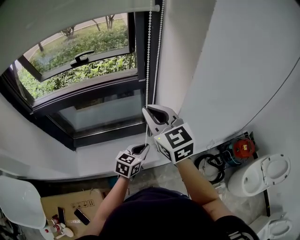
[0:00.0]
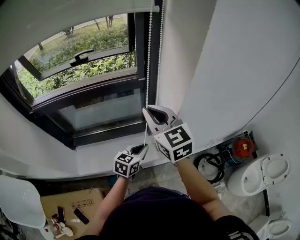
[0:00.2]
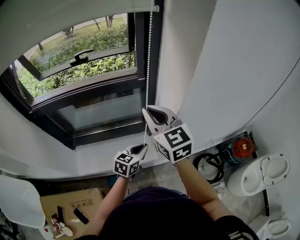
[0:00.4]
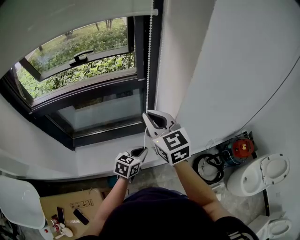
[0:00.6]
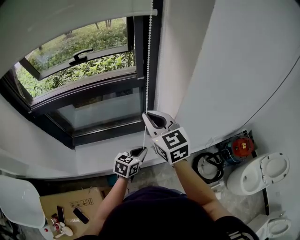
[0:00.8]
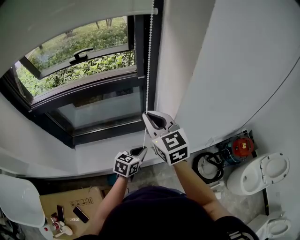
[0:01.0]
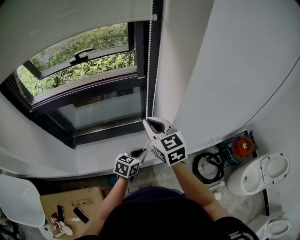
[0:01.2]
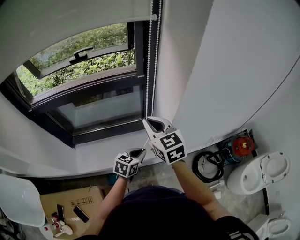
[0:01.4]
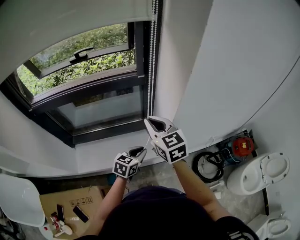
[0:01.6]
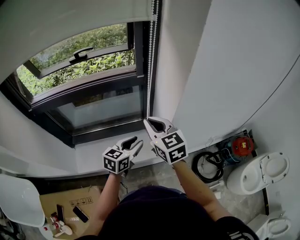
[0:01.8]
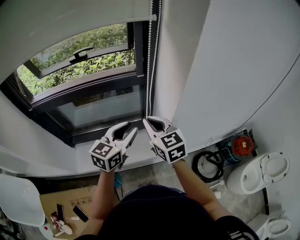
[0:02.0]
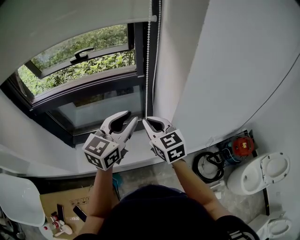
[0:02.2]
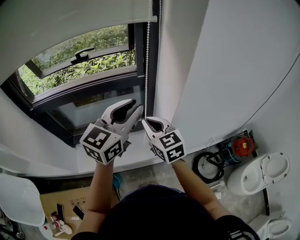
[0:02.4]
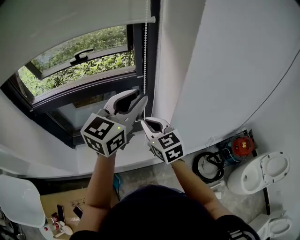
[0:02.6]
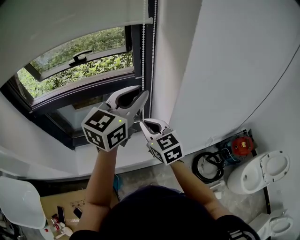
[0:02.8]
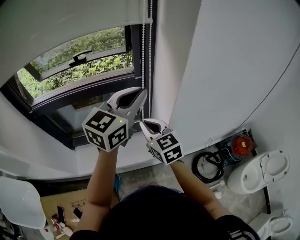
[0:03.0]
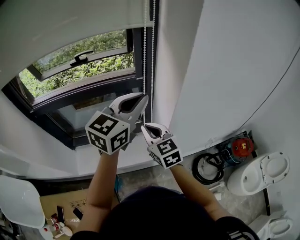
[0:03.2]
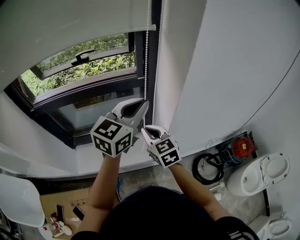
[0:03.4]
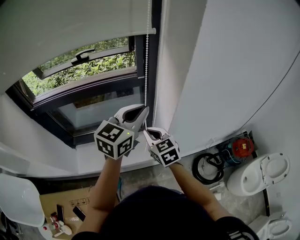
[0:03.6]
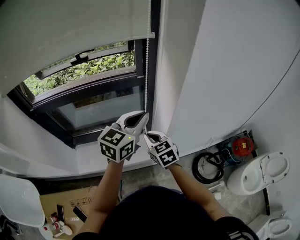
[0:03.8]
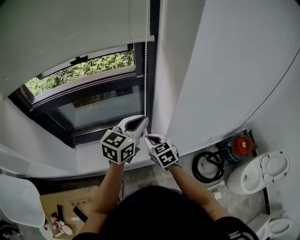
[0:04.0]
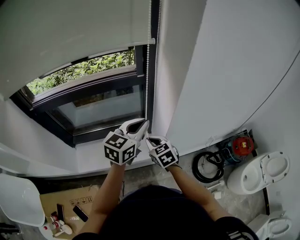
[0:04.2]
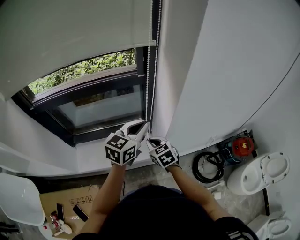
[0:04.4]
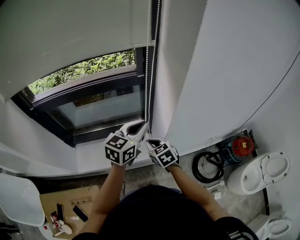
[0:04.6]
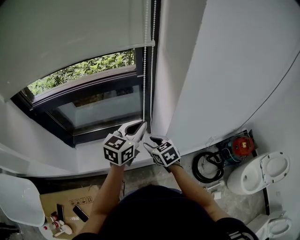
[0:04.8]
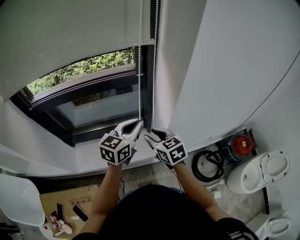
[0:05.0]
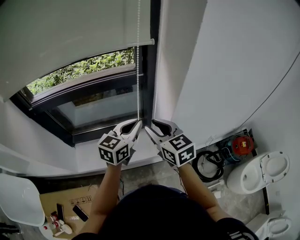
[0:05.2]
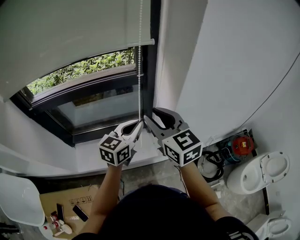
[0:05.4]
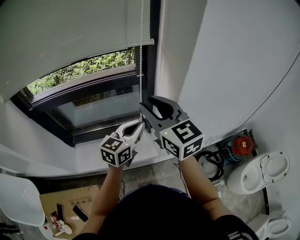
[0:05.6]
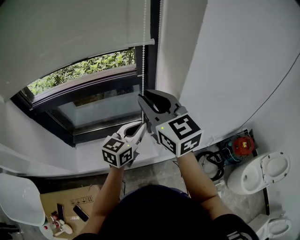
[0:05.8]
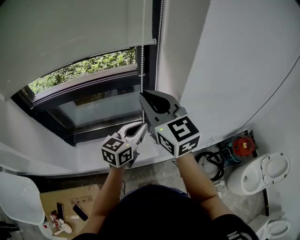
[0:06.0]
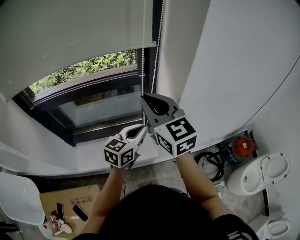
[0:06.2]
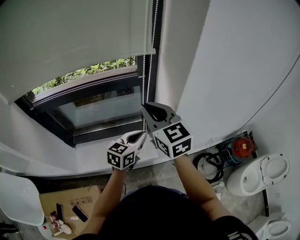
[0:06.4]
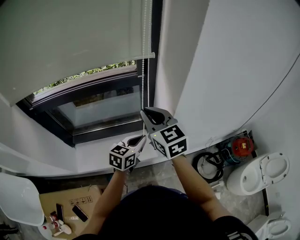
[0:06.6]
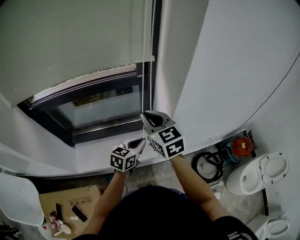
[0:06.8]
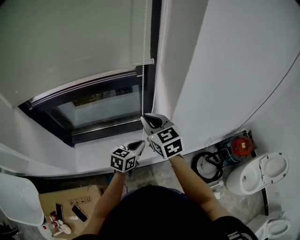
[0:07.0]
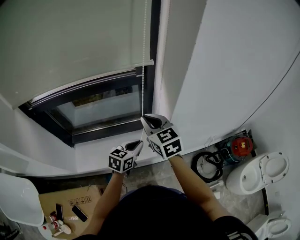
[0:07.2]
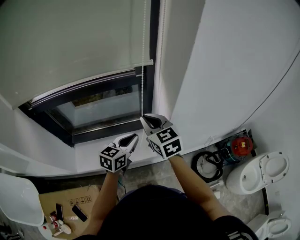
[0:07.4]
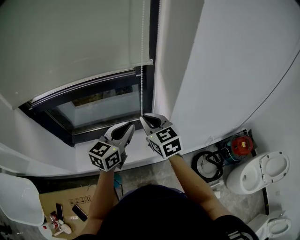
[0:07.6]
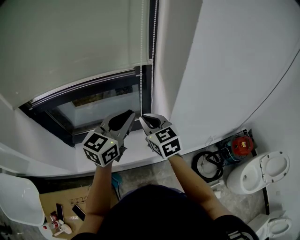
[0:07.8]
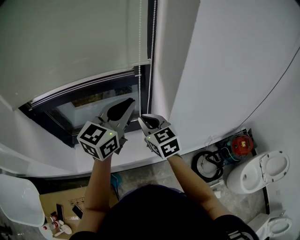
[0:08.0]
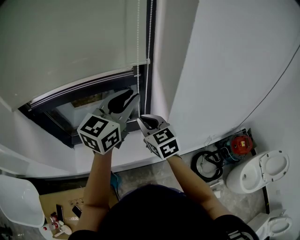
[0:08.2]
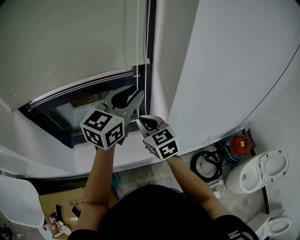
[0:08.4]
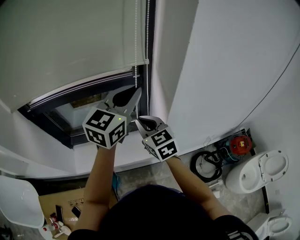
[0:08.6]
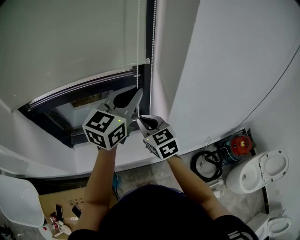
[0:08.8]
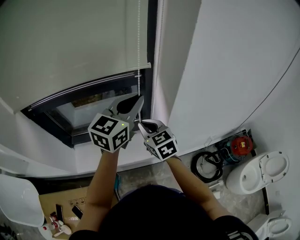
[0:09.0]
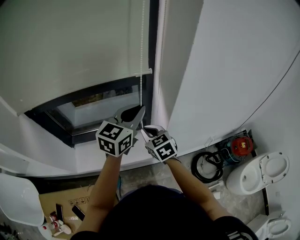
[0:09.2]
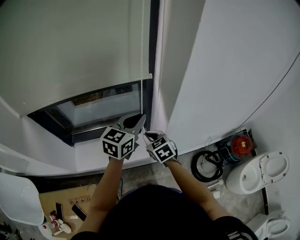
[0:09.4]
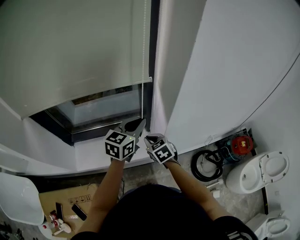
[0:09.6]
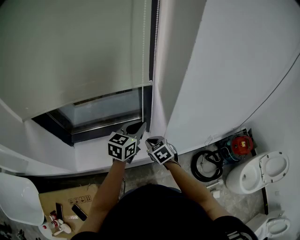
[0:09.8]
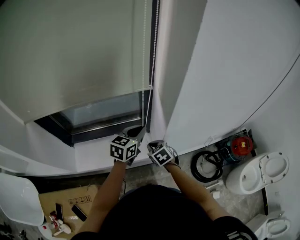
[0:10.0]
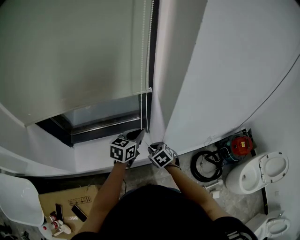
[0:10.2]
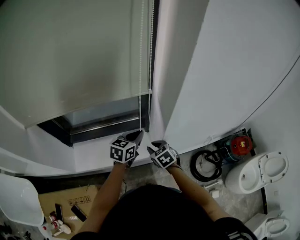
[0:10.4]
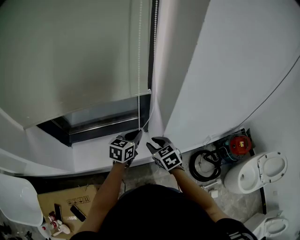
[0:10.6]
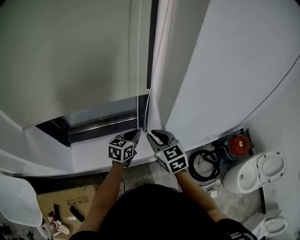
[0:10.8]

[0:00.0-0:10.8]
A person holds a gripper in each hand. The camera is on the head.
0:00.0 to 0:01.6: The right gripper travels downward by roughly 10 cm; the left gripper shifts by about 5 cm.
0:01.6 to 0:03.0: The left gripper travels upward by about 35 cm, points its fingers some 30 degrees further upward, and opens and closes again.
0:03.0 to 0:04.6: Both grippers travel together downward, some 15 cm. The right gripper turns by about 20 degrees.
0:04.6 to 0:06.2: The right gripper moves upward, roughly 30 cm, angles its fingers upward, by about 40 degrees, and opens and closes again.
0:06.2 to 0:07.8: The left gripper moves upward, about 10 cm, while the right gripper goes about 15 cm downward.
0:07.8 to 0:09.2: The left gripper travels upward and back again, approximately 10 cm each way. Meanwhile the right gripper heads downward, covering approximately 10 cm.
0:09.2 to 0:10.8: The left gripper moves downward, some 20 cm, and rotates approximately 20 degrees, while the right gripper reaches about 15 cm downward, then returns.

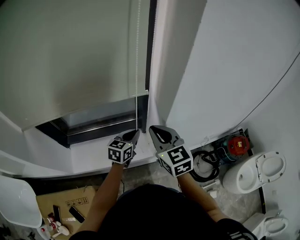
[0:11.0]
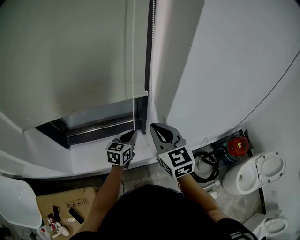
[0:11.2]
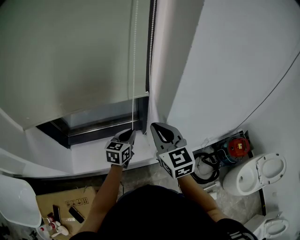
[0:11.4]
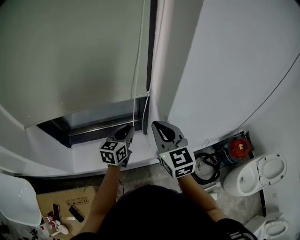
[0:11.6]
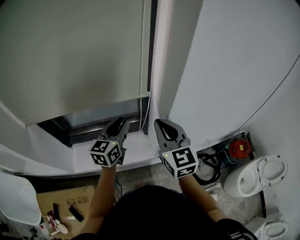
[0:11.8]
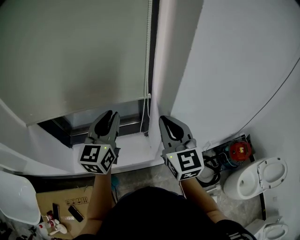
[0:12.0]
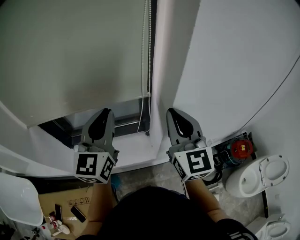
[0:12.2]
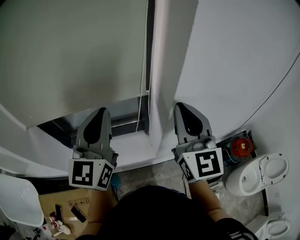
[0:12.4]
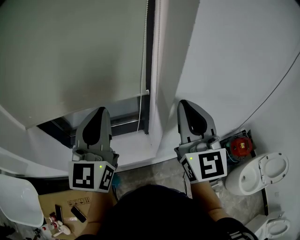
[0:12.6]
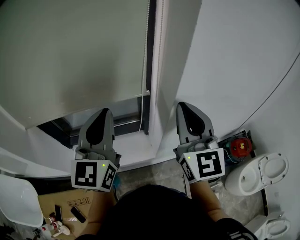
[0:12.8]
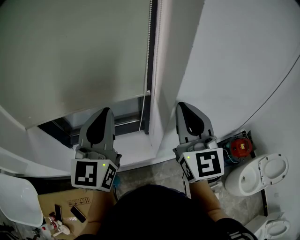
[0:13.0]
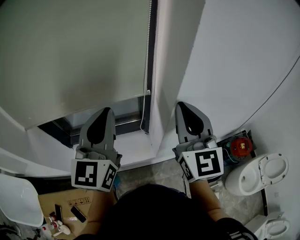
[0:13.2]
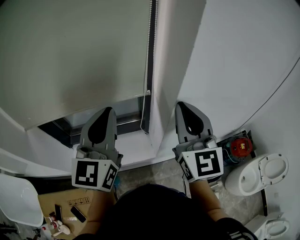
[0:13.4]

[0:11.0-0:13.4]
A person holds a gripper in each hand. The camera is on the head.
0:11.0 to 0:12.2: The left gripper moves upward, about 30 cm, and swivels some 40 degrees, while the right gripper shifts approximately 15 cm upward, and swivels approximately 20 degrees.
0:12.2 to 0:13.4: The grippers move only a little.

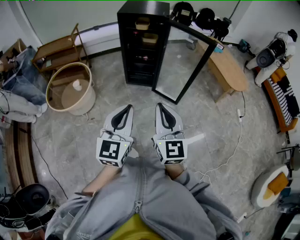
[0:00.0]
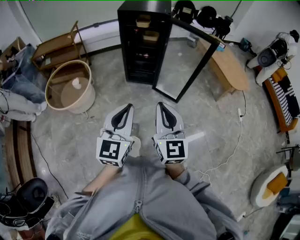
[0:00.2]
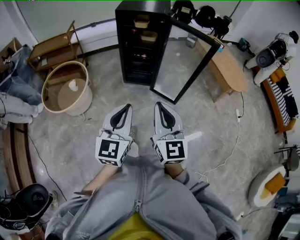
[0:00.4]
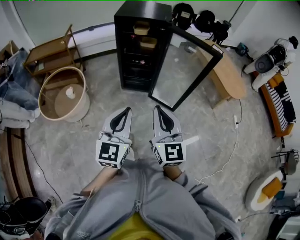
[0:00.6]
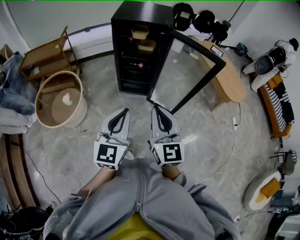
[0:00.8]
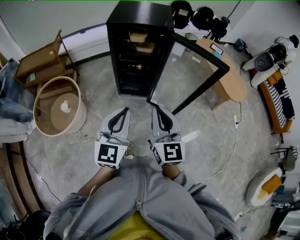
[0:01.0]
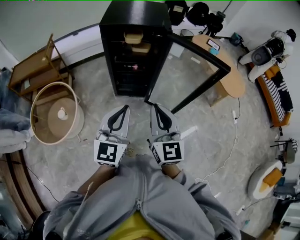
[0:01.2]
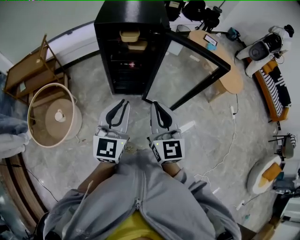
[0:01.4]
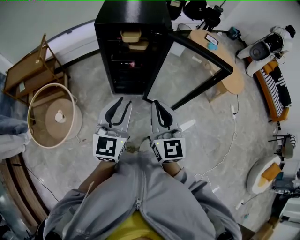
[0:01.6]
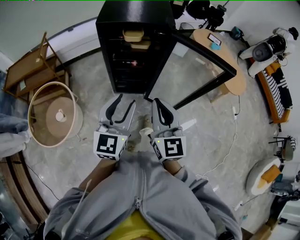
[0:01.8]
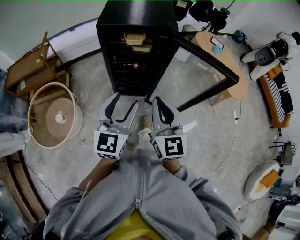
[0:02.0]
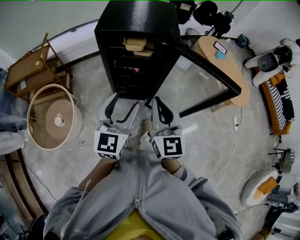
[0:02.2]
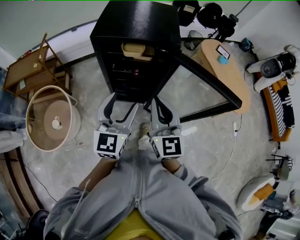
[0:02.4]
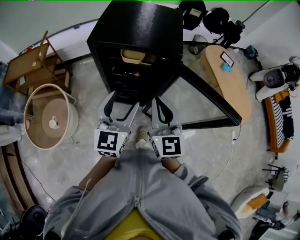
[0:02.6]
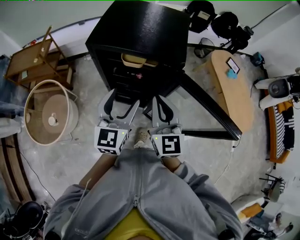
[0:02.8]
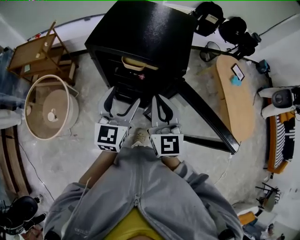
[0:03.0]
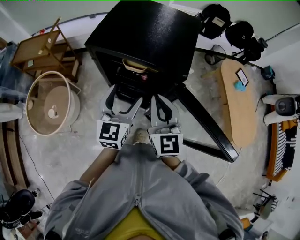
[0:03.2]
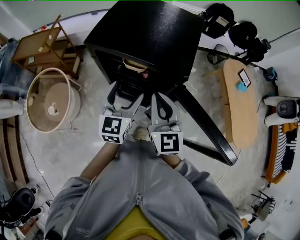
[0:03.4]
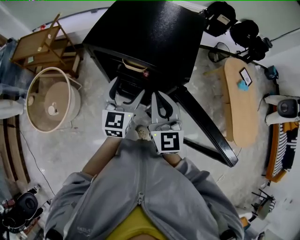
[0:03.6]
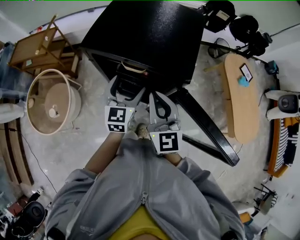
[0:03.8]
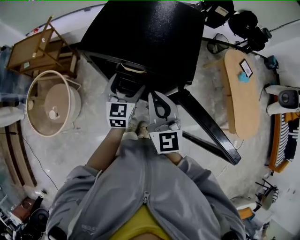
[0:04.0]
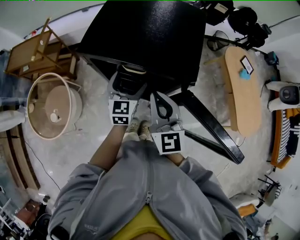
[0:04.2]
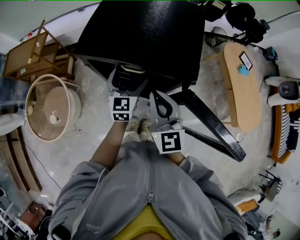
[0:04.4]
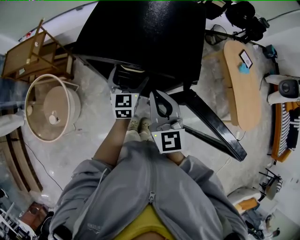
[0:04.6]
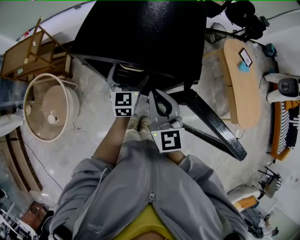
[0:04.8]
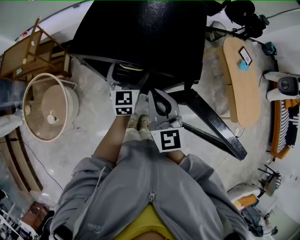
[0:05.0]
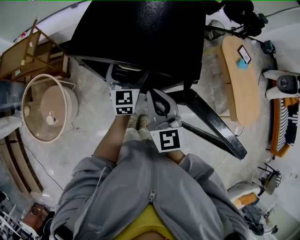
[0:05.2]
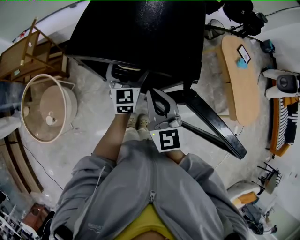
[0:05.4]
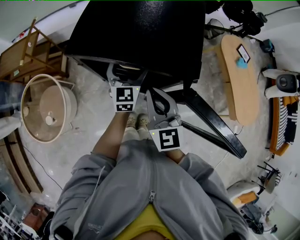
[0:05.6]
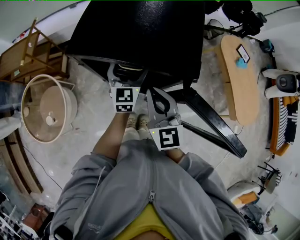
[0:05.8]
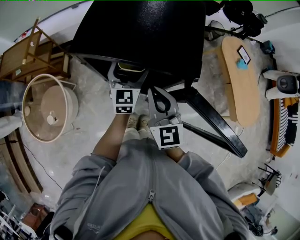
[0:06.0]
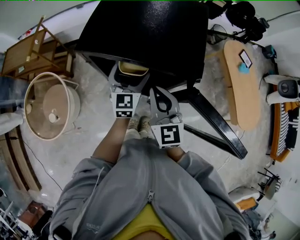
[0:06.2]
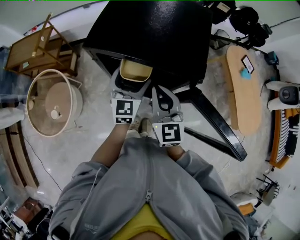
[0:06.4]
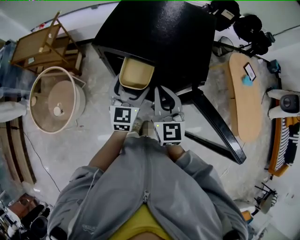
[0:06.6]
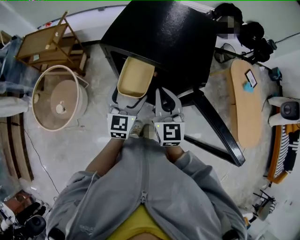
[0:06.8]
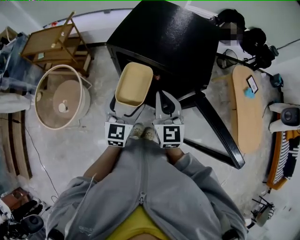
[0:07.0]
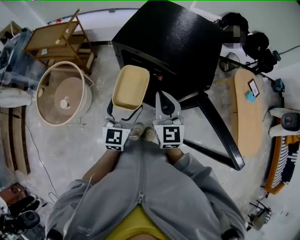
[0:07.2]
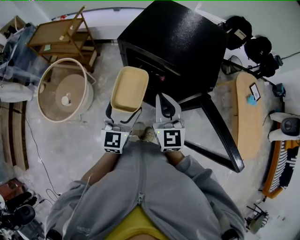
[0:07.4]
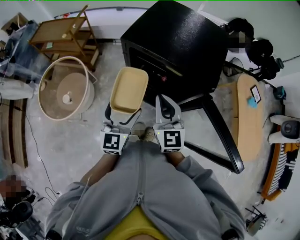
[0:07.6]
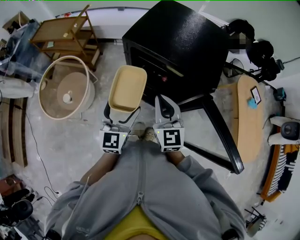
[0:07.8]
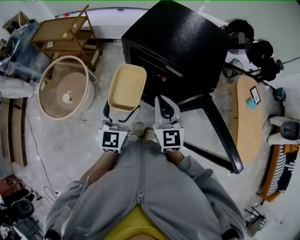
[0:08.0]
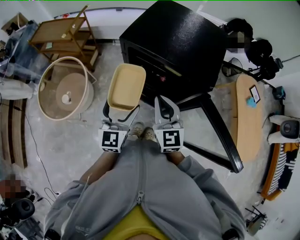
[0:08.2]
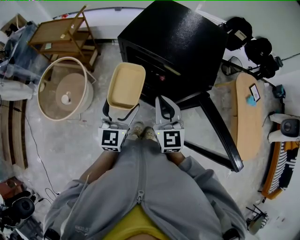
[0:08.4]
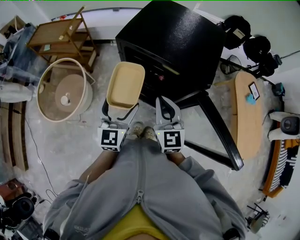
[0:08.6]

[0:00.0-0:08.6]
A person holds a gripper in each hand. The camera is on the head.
0:00.0 to 0:01.4: The grippers both shift forward by approximately 35 cm.
0:01.4 to 0:02.8: The two grippers go some 25 cm forward. The left gripper opens its fingers.
0:02.8 to 0:04.4: The left gripper travels forward and downward by approximately 20 cm. The right gripper moves forward, about 10 cm.
0:04.4 to 0:05.8: The grippers stay close to where they were, moving slightly.
0:05.8 to 0:07.2: The left gripper moves backward and to the left, about 20 cm. Meanwhile the right gripper shifts by some 5 cm.
0:07.2 to 0:08.6: The grippers stay close to where they were, moving slightly.

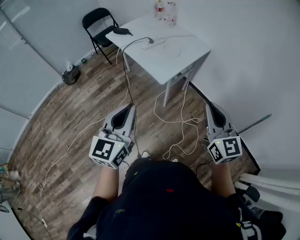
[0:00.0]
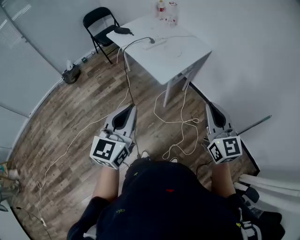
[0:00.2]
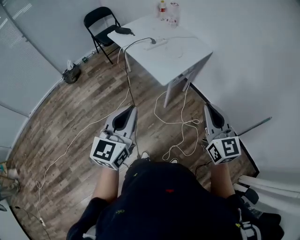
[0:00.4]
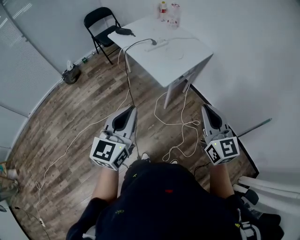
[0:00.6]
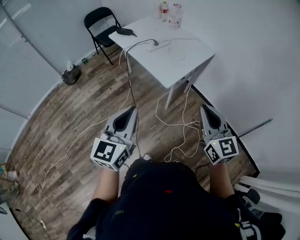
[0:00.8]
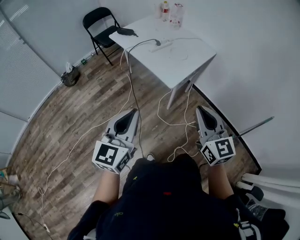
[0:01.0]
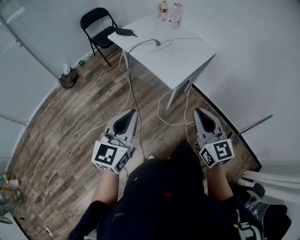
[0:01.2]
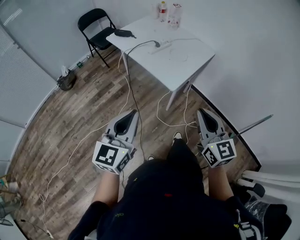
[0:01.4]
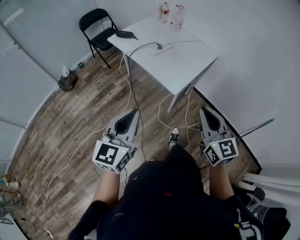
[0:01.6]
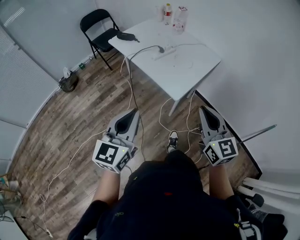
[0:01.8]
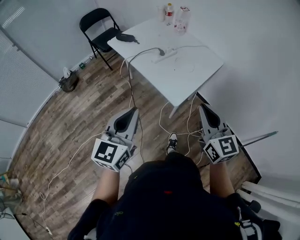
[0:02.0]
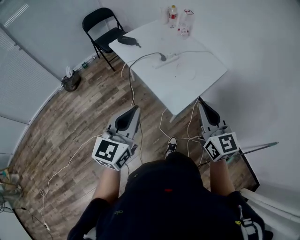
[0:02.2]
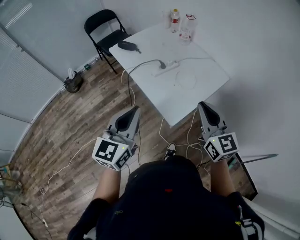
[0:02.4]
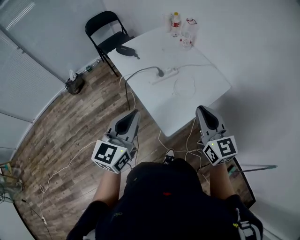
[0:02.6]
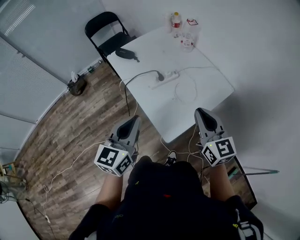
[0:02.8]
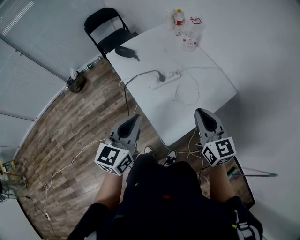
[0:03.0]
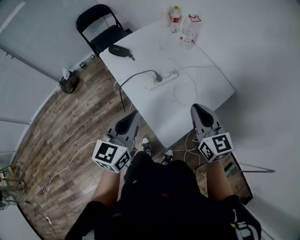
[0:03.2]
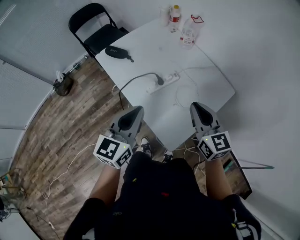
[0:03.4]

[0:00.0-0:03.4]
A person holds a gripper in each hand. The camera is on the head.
0:00.0 to 0:01.6: The grippers both shift to the left and forward by approximately 15 cm.
0:01.6 to 0:03.4: The pair of grippers is taken forward, roughly 40 cm.
